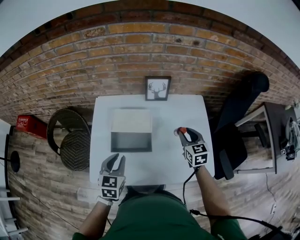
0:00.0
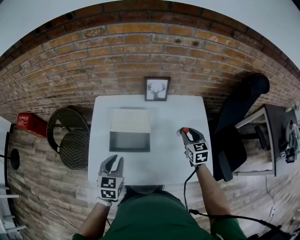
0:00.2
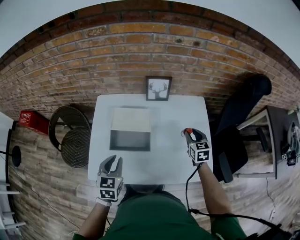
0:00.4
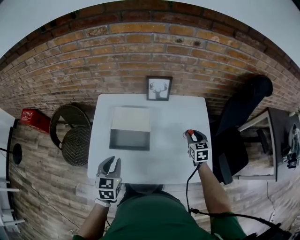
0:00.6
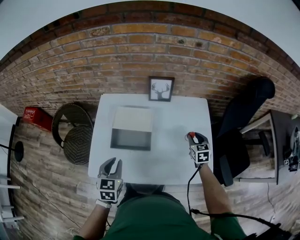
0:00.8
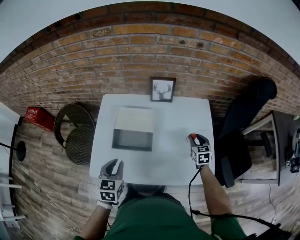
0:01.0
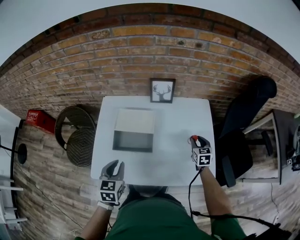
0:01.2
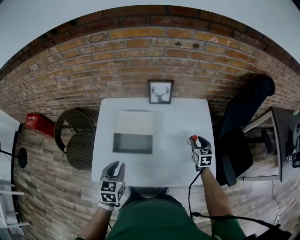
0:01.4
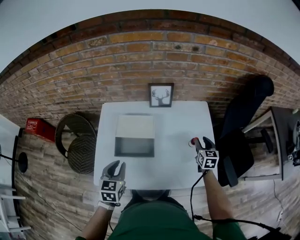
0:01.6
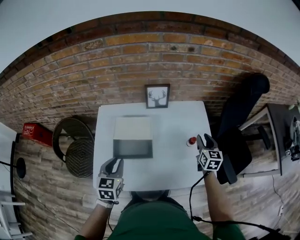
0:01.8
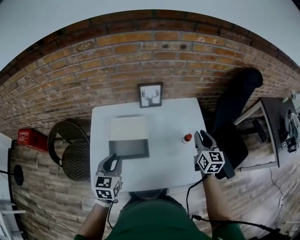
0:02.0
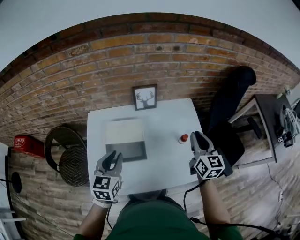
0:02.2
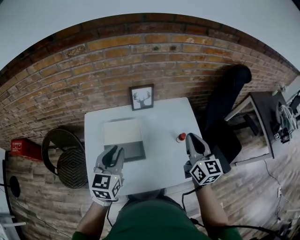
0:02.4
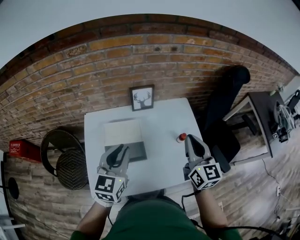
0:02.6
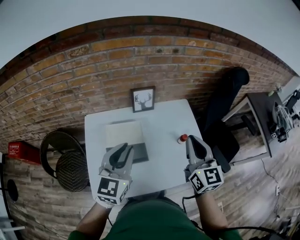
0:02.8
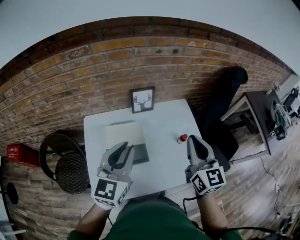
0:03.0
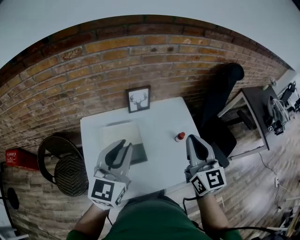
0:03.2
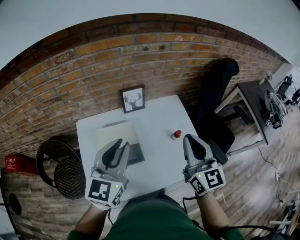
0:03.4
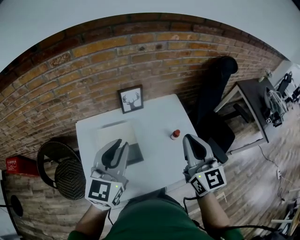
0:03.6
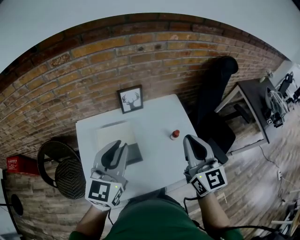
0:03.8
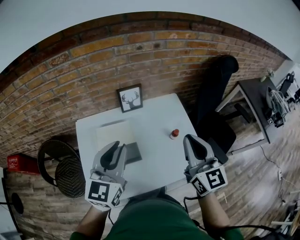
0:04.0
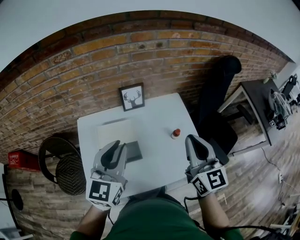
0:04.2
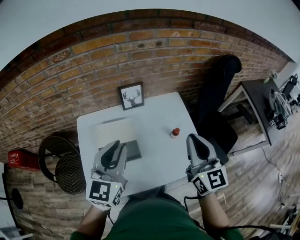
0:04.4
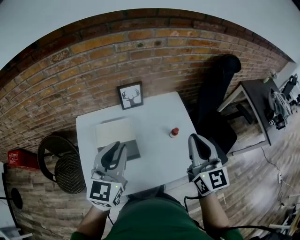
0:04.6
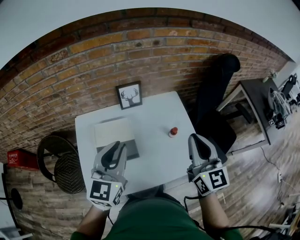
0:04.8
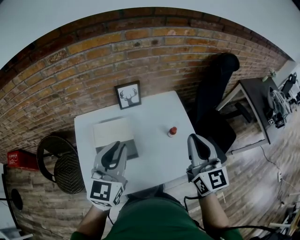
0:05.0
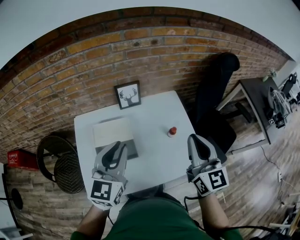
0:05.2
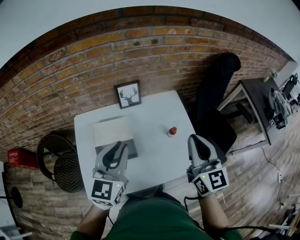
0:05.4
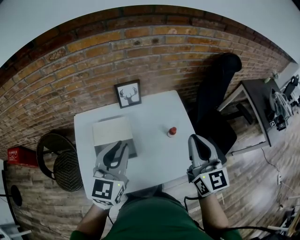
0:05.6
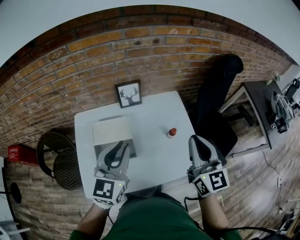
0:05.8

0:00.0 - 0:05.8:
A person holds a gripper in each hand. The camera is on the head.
0:00.0 - 0:01.4: The right gripper moves to the right and downward, about 15 cm.
0:01.4 - 0:02.8: The right gripper moves upward, some 30 cm, points its fingers about 30 degrees further upward, and closes up. The left gripper travels upward and forward by about 20 cm, and rotates about 40 degrees.
0:02.8 - 0:04.4: The right gripper moves about 5 cm.
0:04.4 - 0:05.8: The grippers make only small movements.

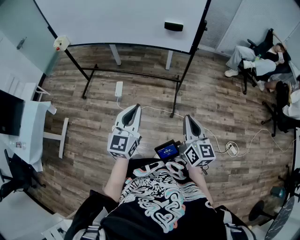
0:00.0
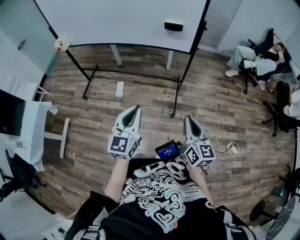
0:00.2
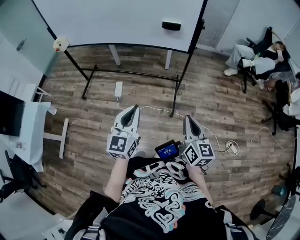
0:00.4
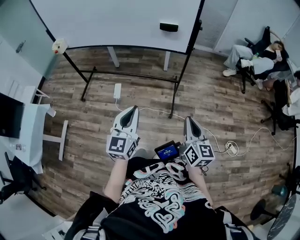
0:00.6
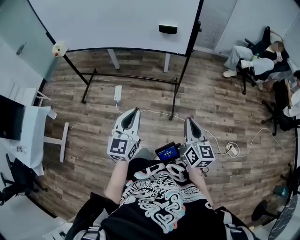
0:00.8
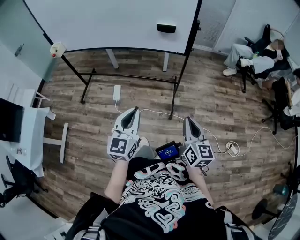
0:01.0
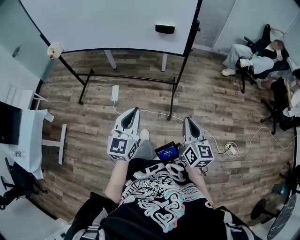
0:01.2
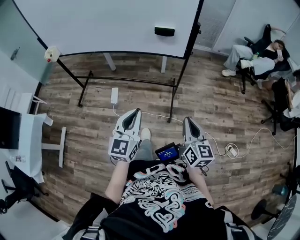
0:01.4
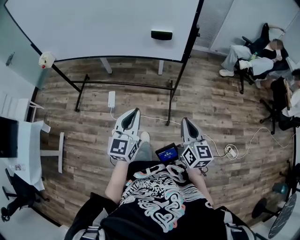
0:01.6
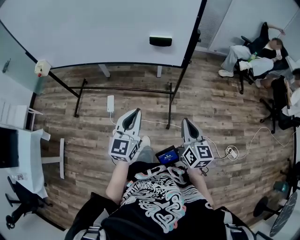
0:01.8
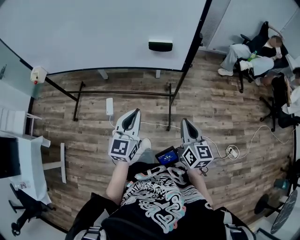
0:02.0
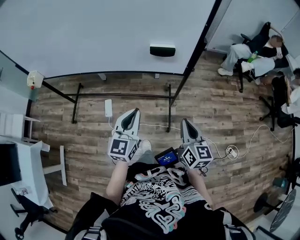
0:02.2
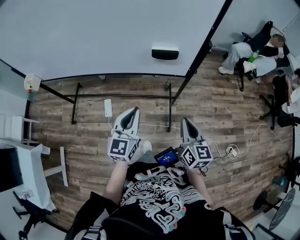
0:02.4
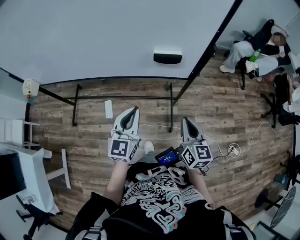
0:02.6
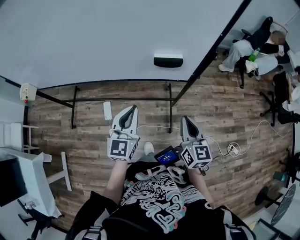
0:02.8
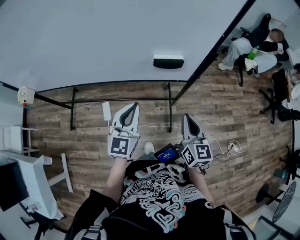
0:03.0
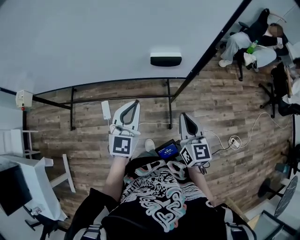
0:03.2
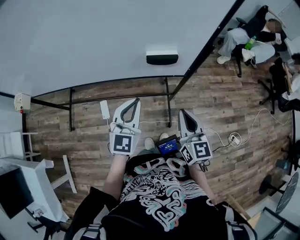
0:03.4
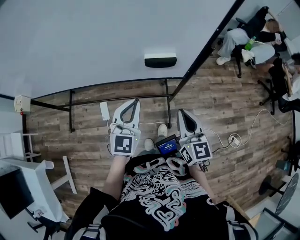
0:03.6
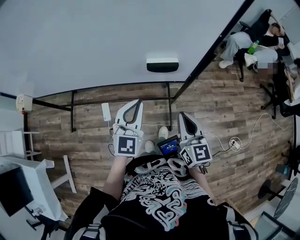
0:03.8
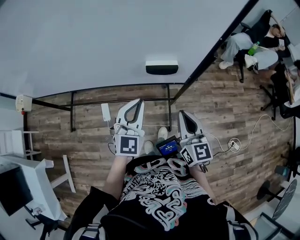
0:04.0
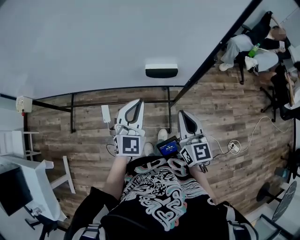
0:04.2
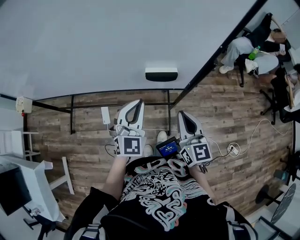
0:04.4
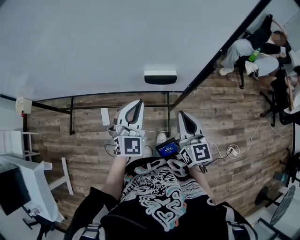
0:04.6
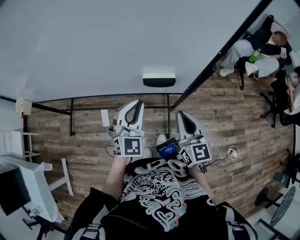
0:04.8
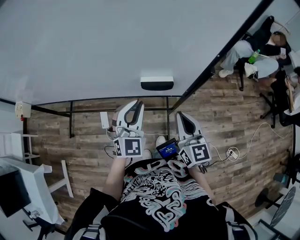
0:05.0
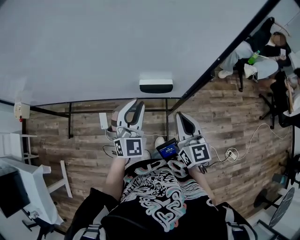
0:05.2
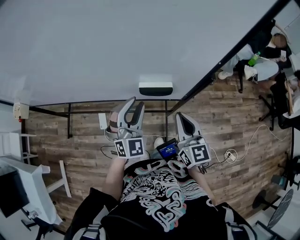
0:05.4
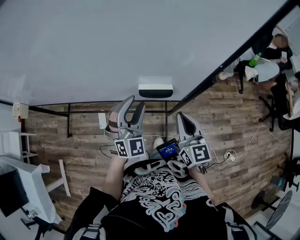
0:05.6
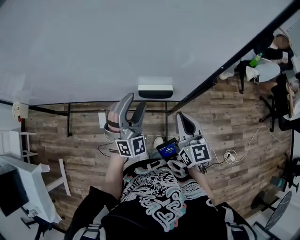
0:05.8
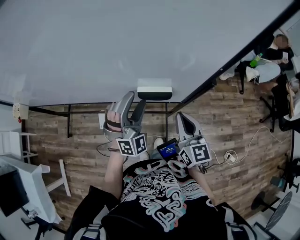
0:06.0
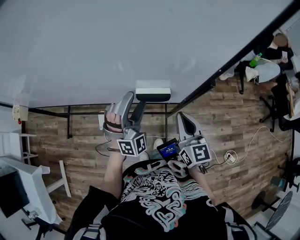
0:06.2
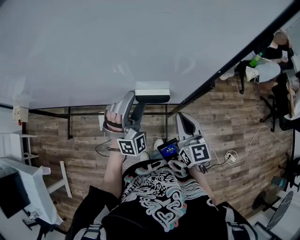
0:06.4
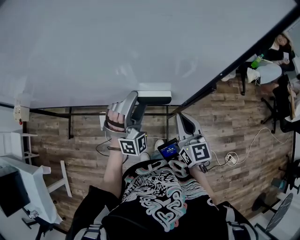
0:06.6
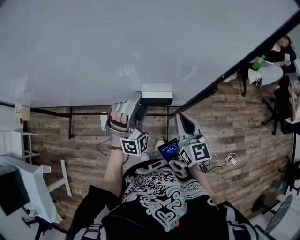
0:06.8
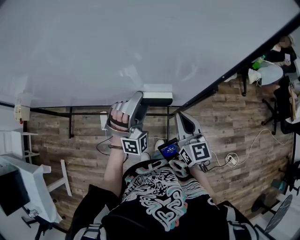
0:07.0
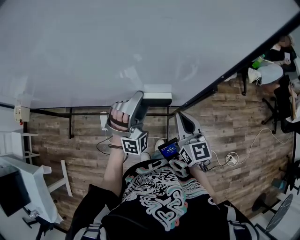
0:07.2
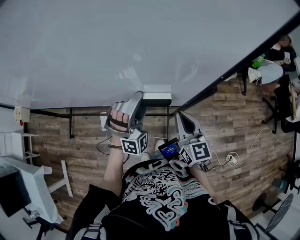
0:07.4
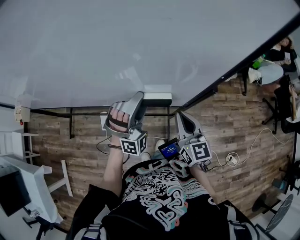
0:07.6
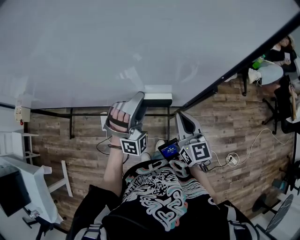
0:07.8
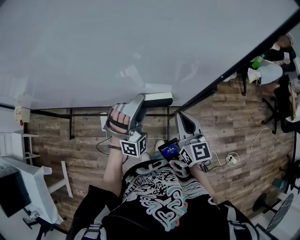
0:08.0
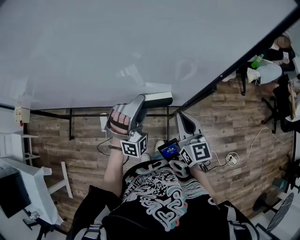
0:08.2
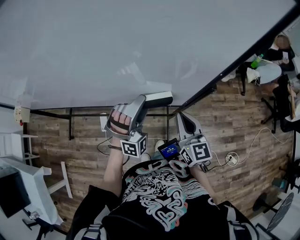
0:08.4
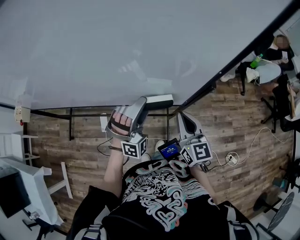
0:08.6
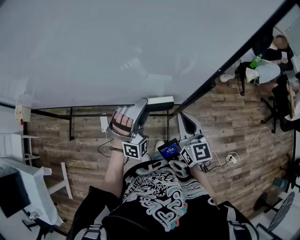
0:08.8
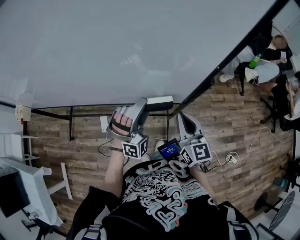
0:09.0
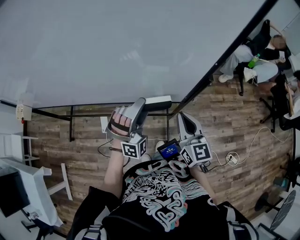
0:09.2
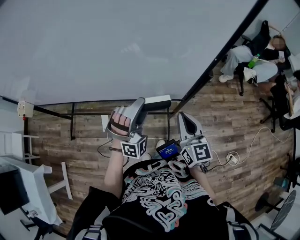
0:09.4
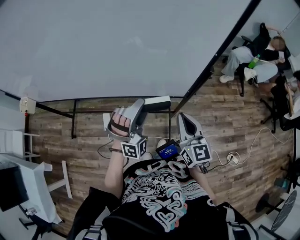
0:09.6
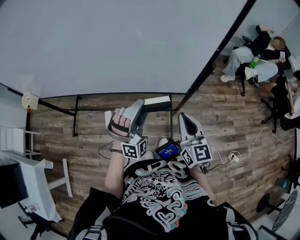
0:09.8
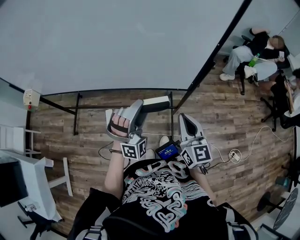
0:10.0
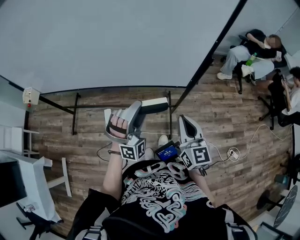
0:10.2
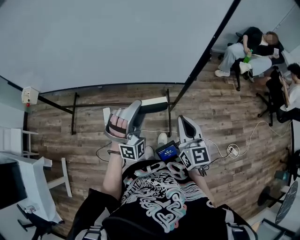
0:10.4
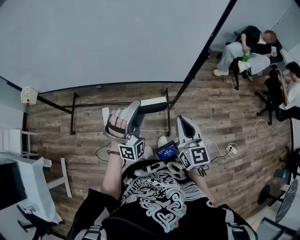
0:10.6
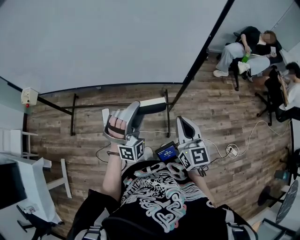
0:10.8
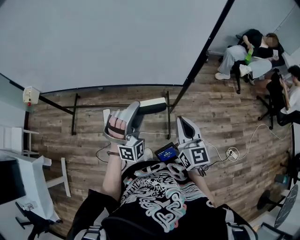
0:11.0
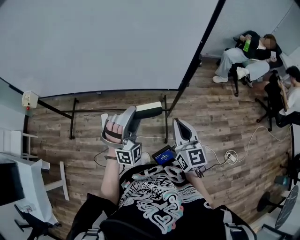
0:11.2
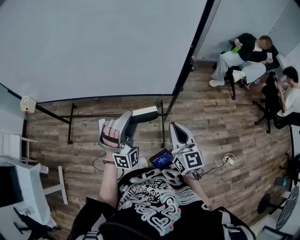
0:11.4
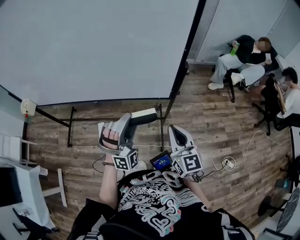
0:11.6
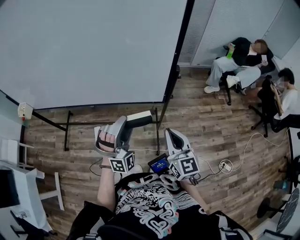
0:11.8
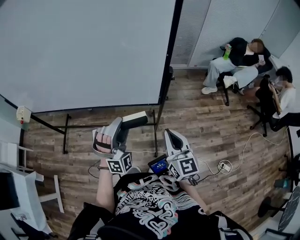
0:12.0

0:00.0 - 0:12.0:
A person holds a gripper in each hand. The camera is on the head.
0:00.0 - 0:01.6: Both grippers travel together forward, about 10 cm.
0:01.6 - 0:03.0: Both grippers move forward, roughly 25 cm.
0:03.0 - 0:04.4: Both grippers travel together forward, roughly 5 cm. The left gripper rotates about 20 degrees.
0:04.4 - 0:06.0: Both grippers travel together forward, about 5 cm. The left gripper changes its angle by approximately 40 degrees, and opens up.
0:06.0 - 0:09.0: There are only small adjustments of the grippers.
0:09.0 - 0:10.4: The right gripper goes approximately 15 cm backward, while the left gripper travels backward and to the left by about 15 cm.
0:10.4 - 0:12.0: The grippers both shift to the right by some 10 cm.

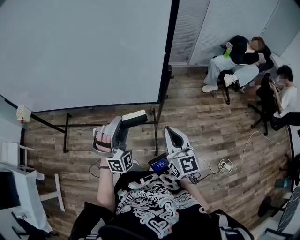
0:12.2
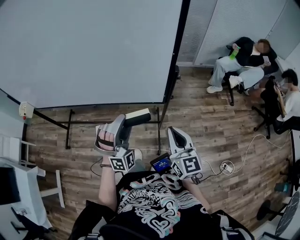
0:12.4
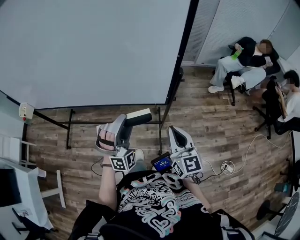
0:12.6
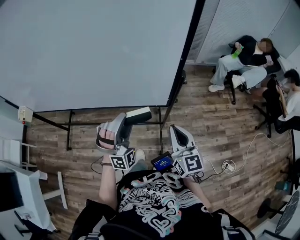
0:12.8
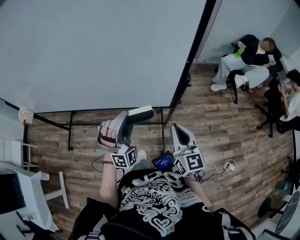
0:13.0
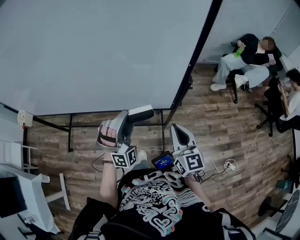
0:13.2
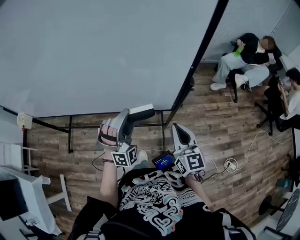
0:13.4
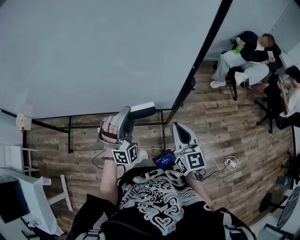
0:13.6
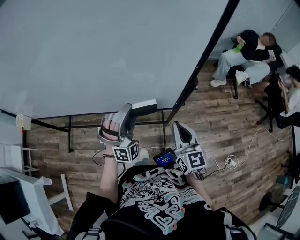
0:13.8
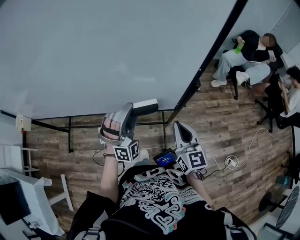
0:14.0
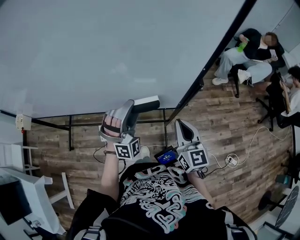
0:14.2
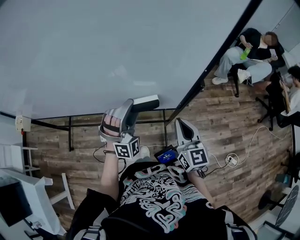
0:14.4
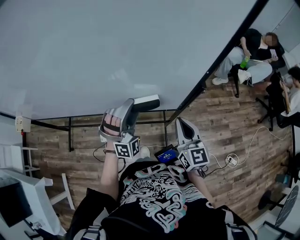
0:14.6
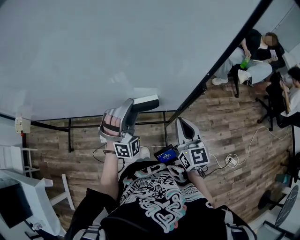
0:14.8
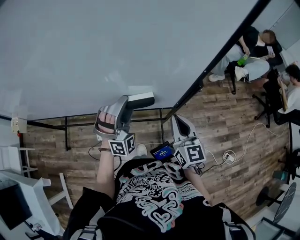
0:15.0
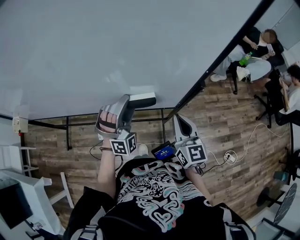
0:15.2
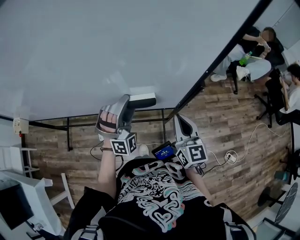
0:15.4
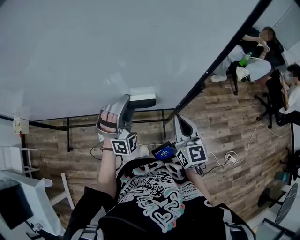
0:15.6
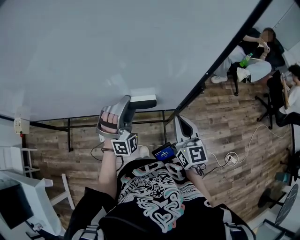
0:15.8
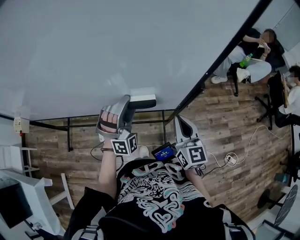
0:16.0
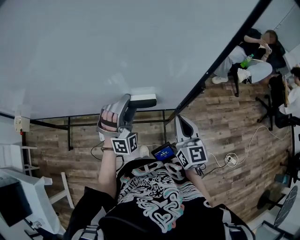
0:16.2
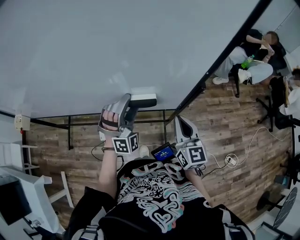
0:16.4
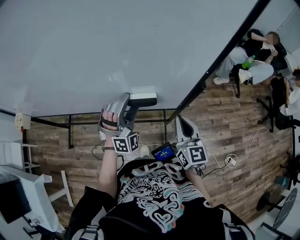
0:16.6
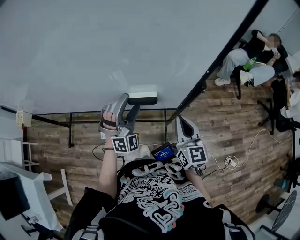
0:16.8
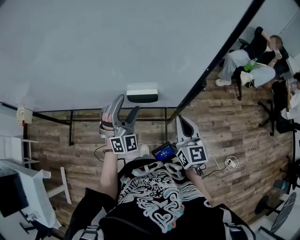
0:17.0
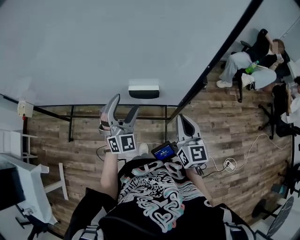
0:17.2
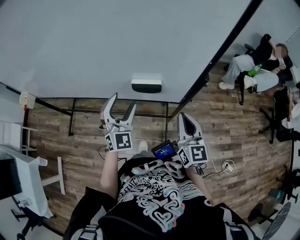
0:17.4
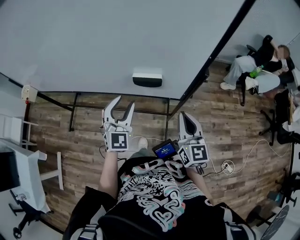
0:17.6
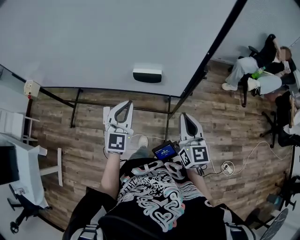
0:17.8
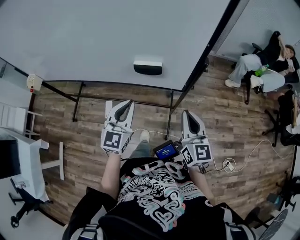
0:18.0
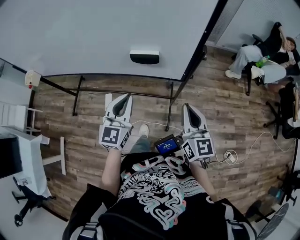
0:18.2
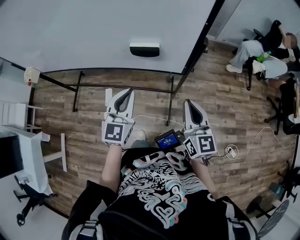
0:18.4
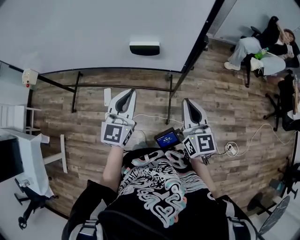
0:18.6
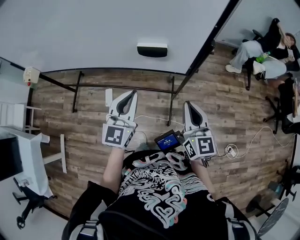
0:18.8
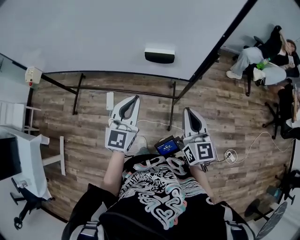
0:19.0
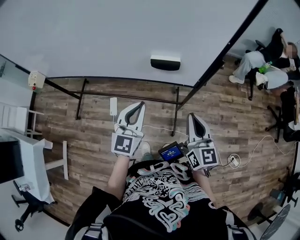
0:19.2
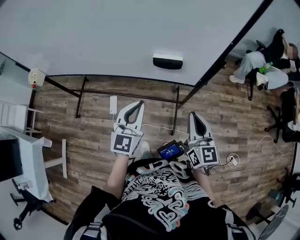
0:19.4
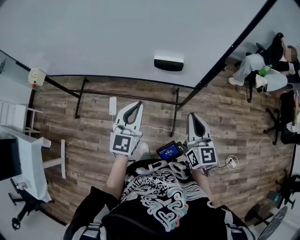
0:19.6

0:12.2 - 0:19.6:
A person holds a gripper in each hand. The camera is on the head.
0:12.2 - 0:13.6: Both grippers move forward, approximately 10 cm.
0:13.6 - 0:15.2: The left gripper is displaced forward by roughly 5 cm.
0:15.2 - 0:16.6: Neither gripper changes place.
0:16.6 - 0:18.2: Both grippers travel together backward, some 15 cm. The left gripper rotates around the line of its fingers by about 70 degrees, counterclockwise from behind, and closes up.
0:18.2 - 0:19.6: The left gripper shifts by about 5 cm. The right gripper goes about 5 cm to the left.
